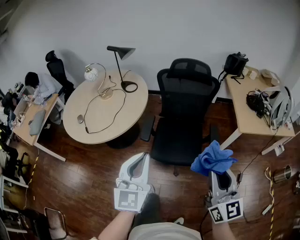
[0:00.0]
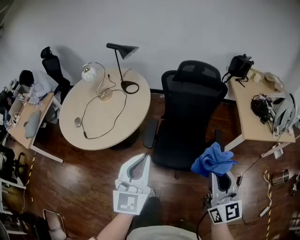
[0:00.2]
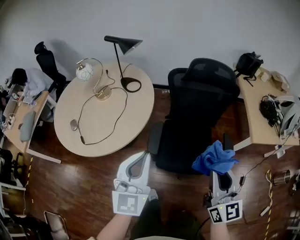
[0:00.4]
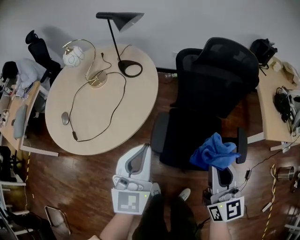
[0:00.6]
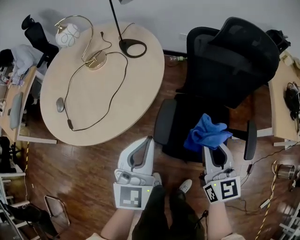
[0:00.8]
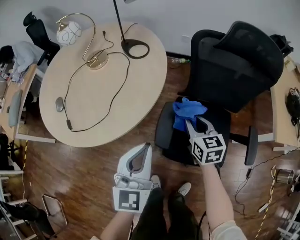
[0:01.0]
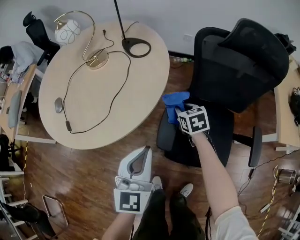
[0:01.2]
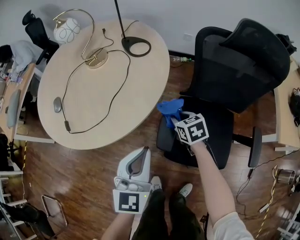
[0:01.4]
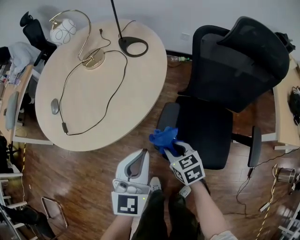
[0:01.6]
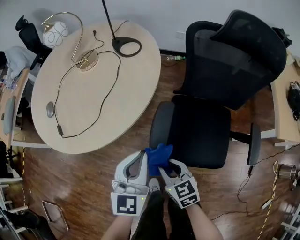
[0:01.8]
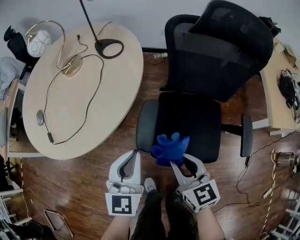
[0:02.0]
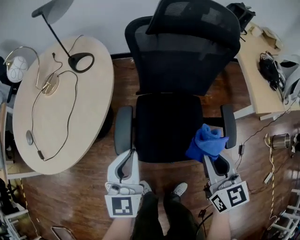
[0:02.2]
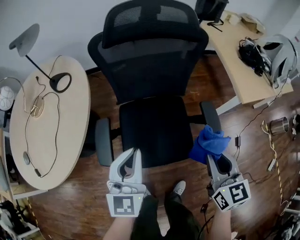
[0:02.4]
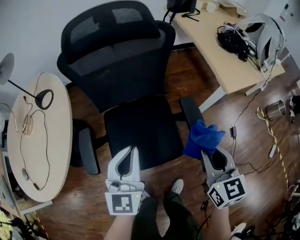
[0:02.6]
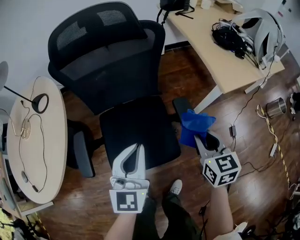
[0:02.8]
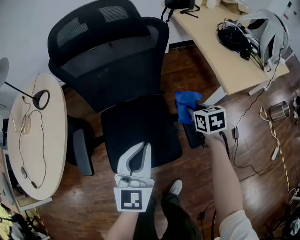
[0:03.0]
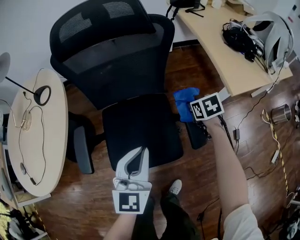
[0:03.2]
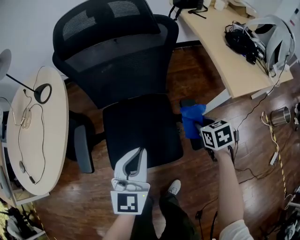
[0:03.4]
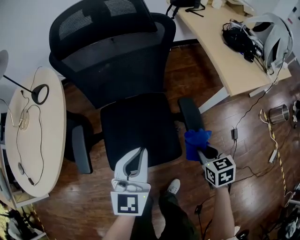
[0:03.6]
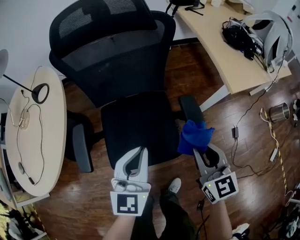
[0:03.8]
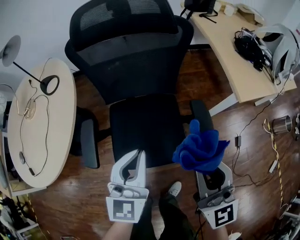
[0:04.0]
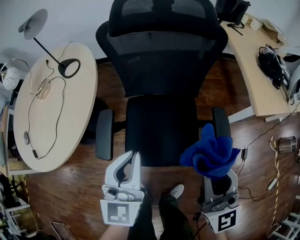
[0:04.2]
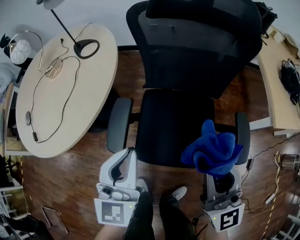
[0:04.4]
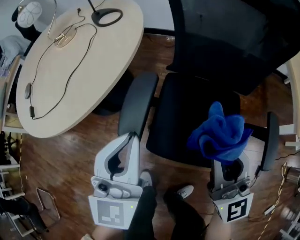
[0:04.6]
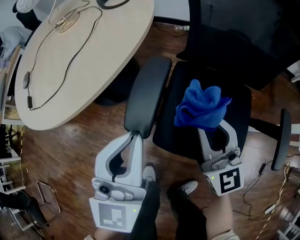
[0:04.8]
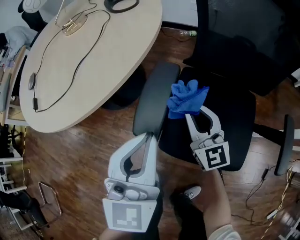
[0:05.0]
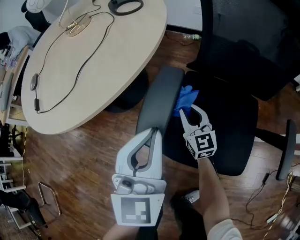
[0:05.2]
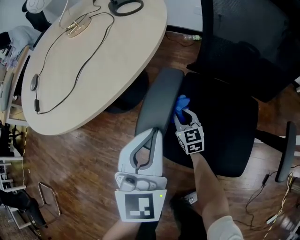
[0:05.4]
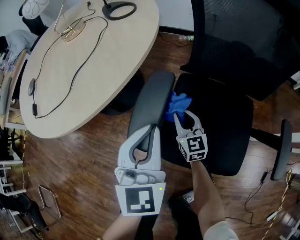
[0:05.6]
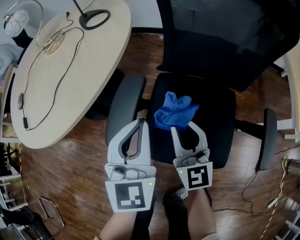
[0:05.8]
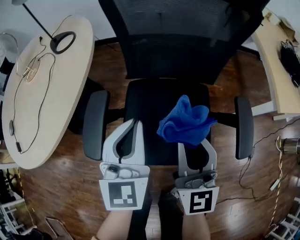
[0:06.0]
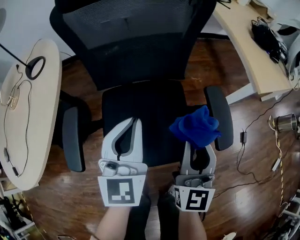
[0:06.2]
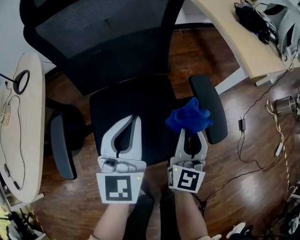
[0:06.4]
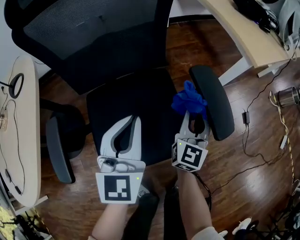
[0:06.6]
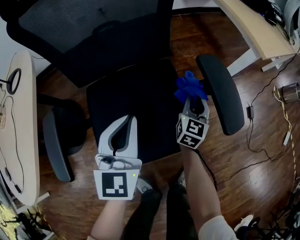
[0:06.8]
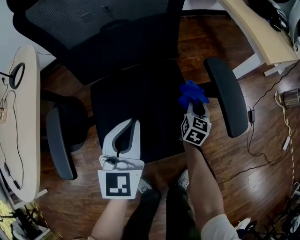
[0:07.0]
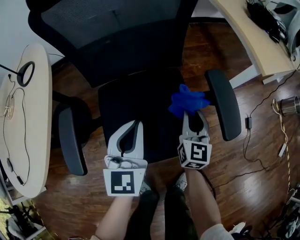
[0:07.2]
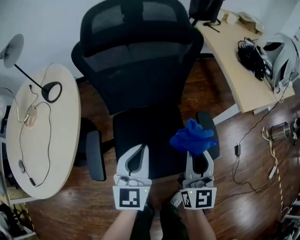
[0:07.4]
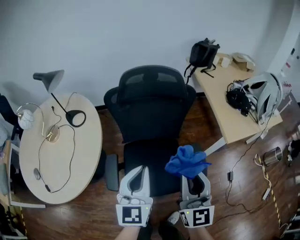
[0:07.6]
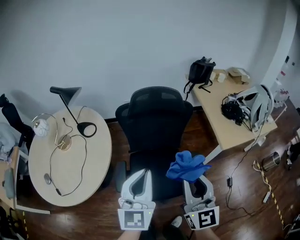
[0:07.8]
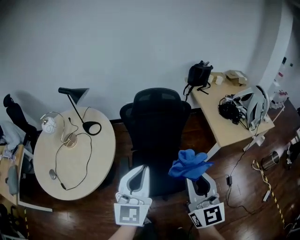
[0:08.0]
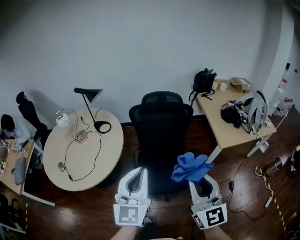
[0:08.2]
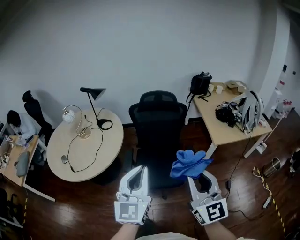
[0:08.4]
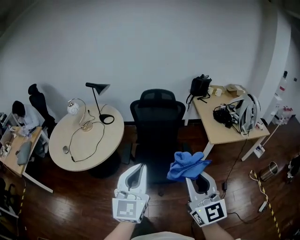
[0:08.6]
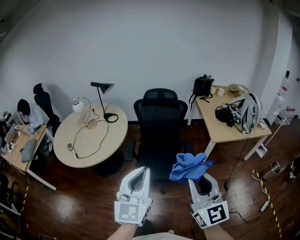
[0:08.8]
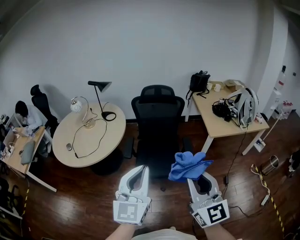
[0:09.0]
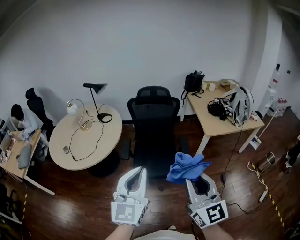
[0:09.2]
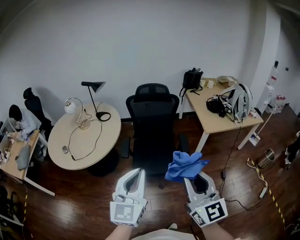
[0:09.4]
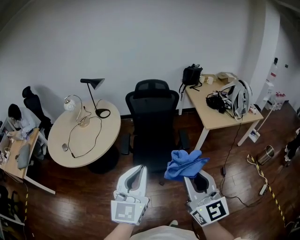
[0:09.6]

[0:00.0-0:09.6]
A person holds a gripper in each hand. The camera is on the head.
0:00.0 to 0:01.6: The right gripper travels downward, forward and to the left by approximately 80 cm, and tips its fingers downward by about 50 degrees; the left gripper moves downward and forward, approximately 60 cm.
0:01.6 to 0:03.2: The two grippers travel together, approximately 50 cm. The left gripper swivels roughly 20 degrees. Meanwhile the right gripper turns by some 40 degrees.
0:03.2 to 0:04.8: The left gripper ends up roughly 25 cm from where it was, and rotates some 30 degrees. The right gripper reaches roughly 30 cm upward, then returns, and points its fingers about 70 degrees further upward.
0:04.8 to 0:06.4: The left gripper shifts by some 25 cm, and swivels some 30 degrees. The right gripper goes up and down, approximately 40 cm each way, reversing 2 times, and swivels some 60 degrees.
0:06.4 to 0:08.0: Both grippers travel together upward, some 70 cm. The right gripper changes its angle by approximately 30 degrees.
0:08.0 to 0:09.6: The two grippers go about 40 cm backward and upward.

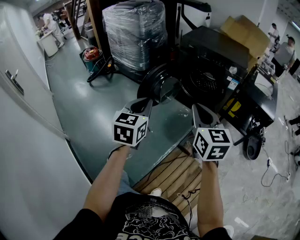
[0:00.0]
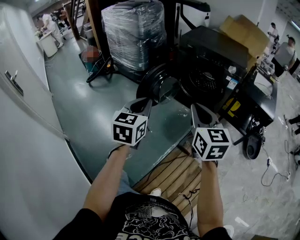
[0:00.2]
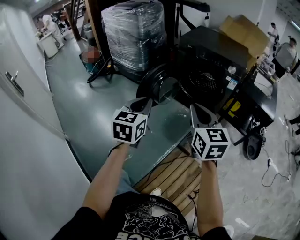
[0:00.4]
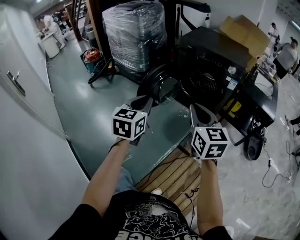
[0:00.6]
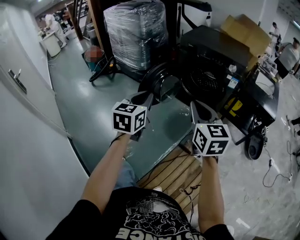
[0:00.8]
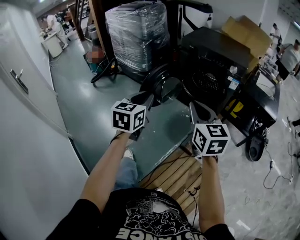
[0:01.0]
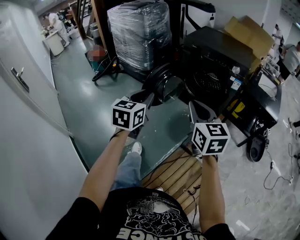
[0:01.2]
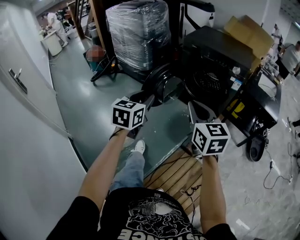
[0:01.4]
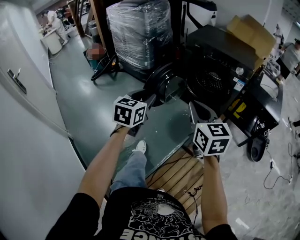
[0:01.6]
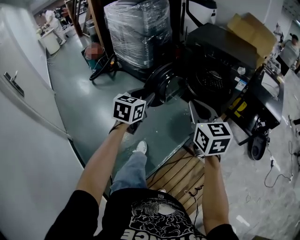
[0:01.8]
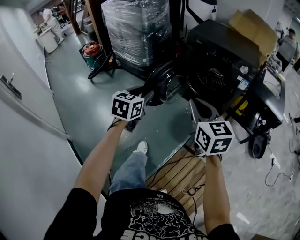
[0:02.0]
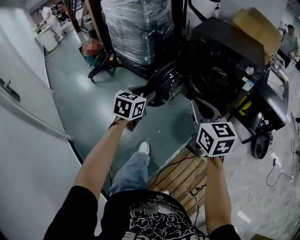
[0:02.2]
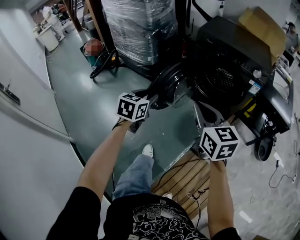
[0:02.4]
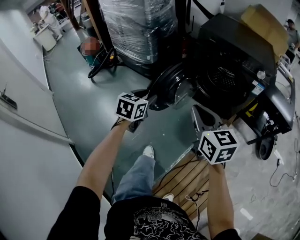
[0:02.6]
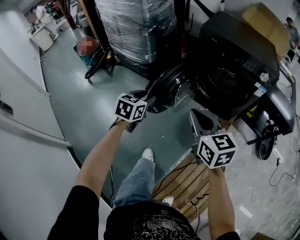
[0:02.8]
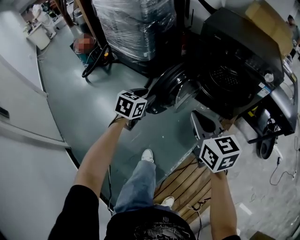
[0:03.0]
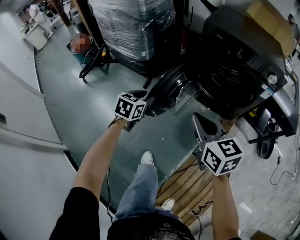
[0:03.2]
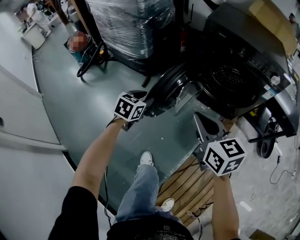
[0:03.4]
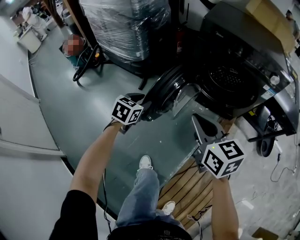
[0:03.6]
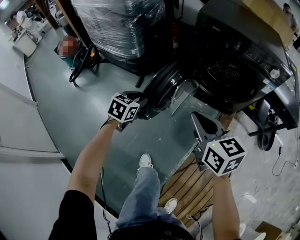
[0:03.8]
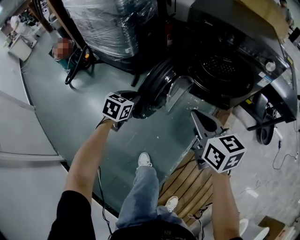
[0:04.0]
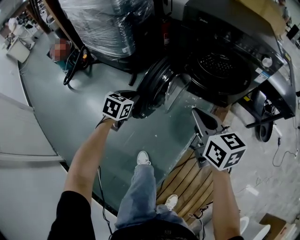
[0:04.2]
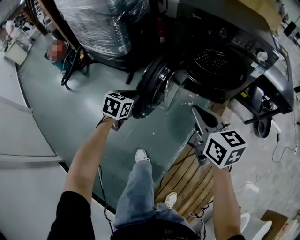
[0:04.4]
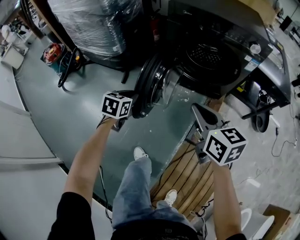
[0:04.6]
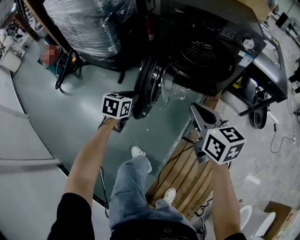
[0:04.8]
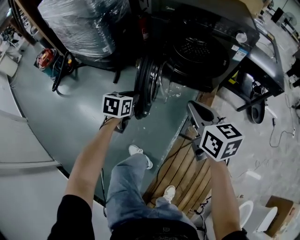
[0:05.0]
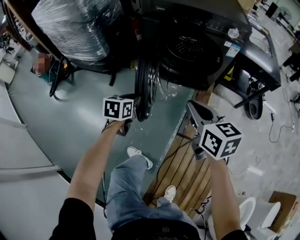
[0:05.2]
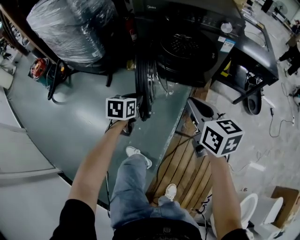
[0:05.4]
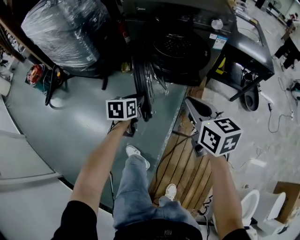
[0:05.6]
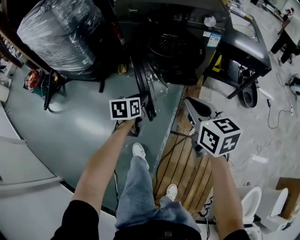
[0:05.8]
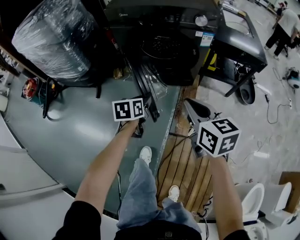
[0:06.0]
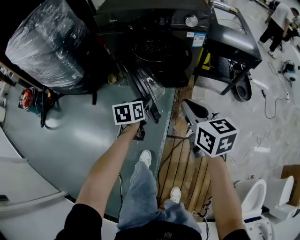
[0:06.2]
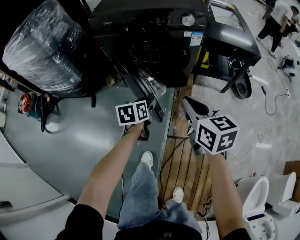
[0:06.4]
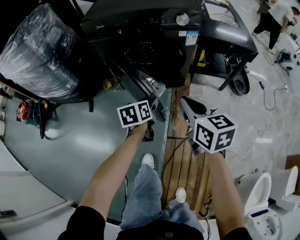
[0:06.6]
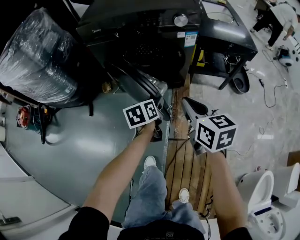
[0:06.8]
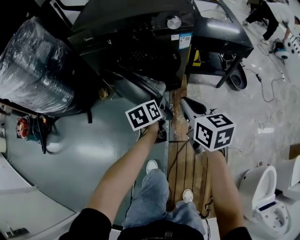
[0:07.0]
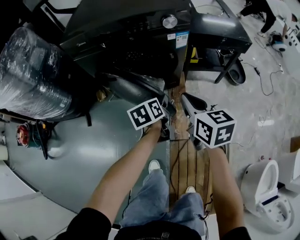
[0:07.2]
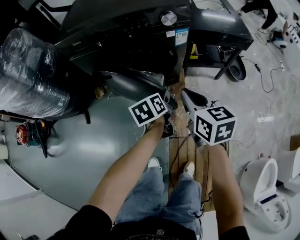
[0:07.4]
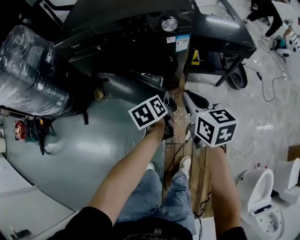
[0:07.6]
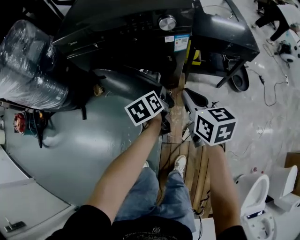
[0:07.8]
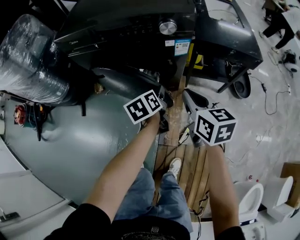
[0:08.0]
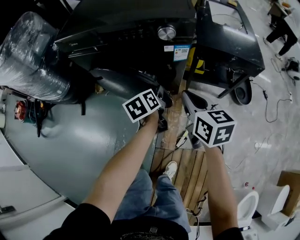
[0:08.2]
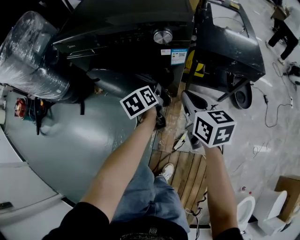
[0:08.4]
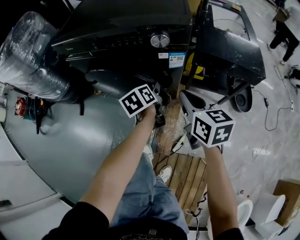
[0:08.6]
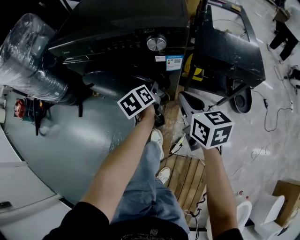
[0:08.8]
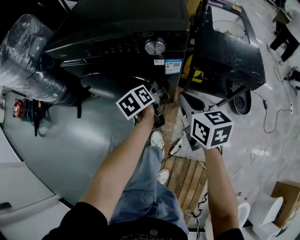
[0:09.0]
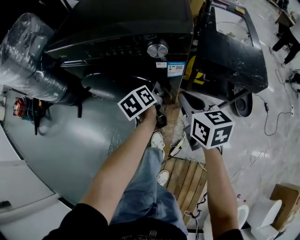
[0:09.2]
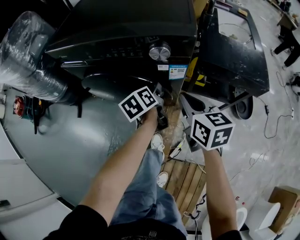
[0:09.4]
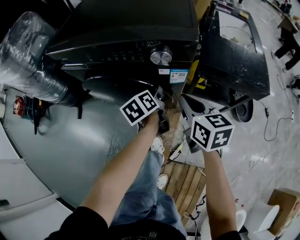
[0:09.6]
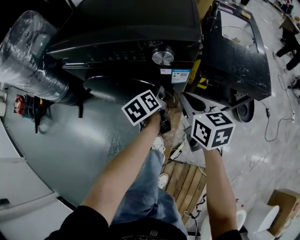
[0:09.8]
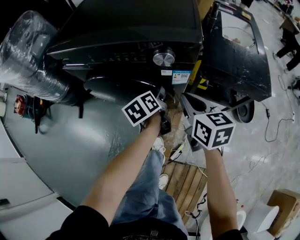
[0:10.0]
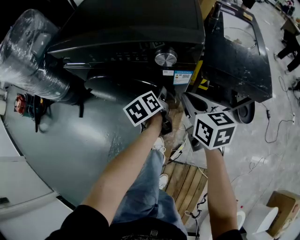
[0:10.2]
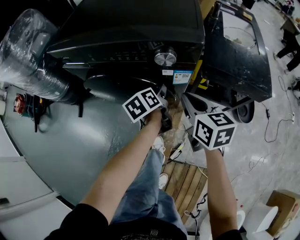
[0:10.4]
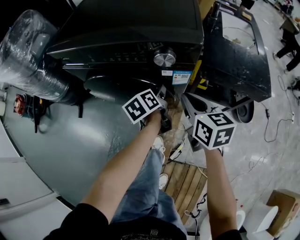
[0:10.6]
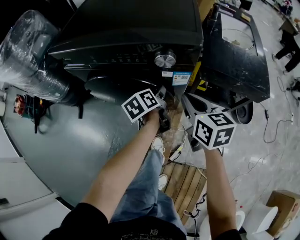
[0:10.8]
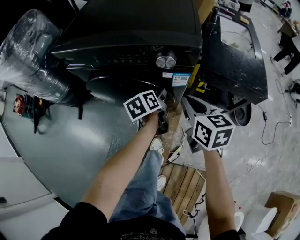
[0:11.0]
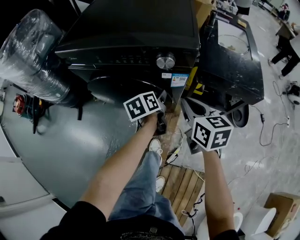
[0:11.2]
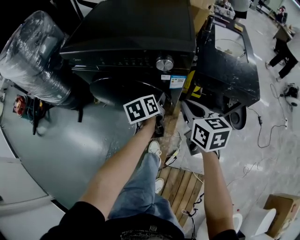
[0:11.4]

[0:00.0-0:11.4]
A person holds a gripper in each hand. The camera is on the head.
0:00.0 to 0:01.4: The left gripper opens.
0:01.4 to 0:02.8: The left gripper travels forward and downward by some 30 cm. Meanwhile the right gripper travels forward, downward and to the left by roughly 20 cm.
0:02.8 to 0:04.2: Both grippers travel together downward and forward, approximately 15 cm. The left gripper closes its fingers.
0:04.2 to 0:05.6: Both grippers travel together to the right, roughly 20 cm.
0:05.6 to 0:07.2: The right gripper travels forward and to the right by some 15 cm. The left gripper goes some 25 cm to the right and forward, and opens.
0:07.2 to 0:08.6: Both grippers travel together forward and to the right, roughly 15 cm. The left gripper rotates approximately 20 degrees.
0:08.6 to 0:10.0: The grippers both shift forward by roughly 5 cm.
0:10.0 to 0:11.4: The right gripper changes place by approximately 5 cm. The left gripper shifts by roughly 5 cm.

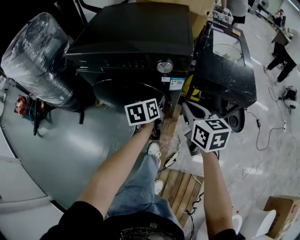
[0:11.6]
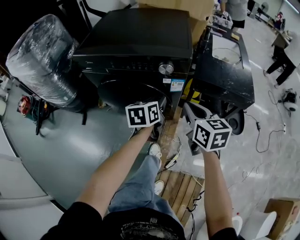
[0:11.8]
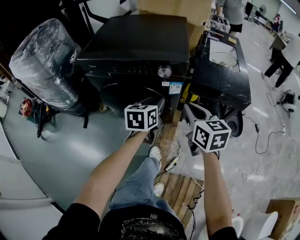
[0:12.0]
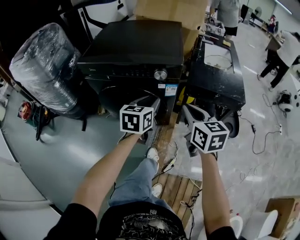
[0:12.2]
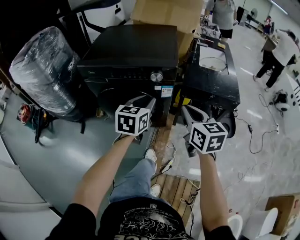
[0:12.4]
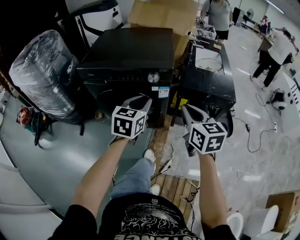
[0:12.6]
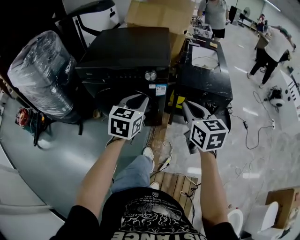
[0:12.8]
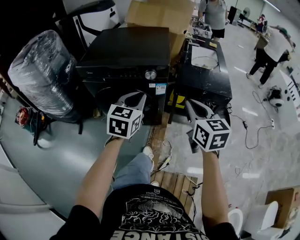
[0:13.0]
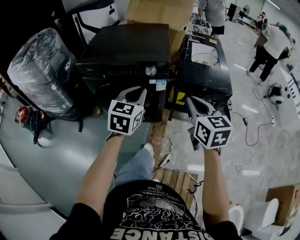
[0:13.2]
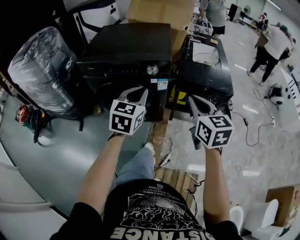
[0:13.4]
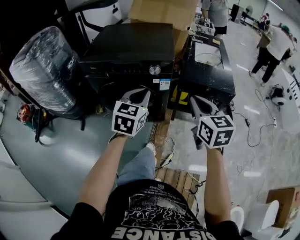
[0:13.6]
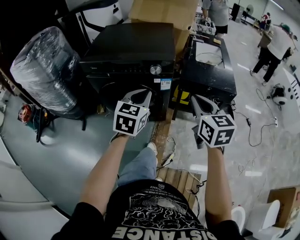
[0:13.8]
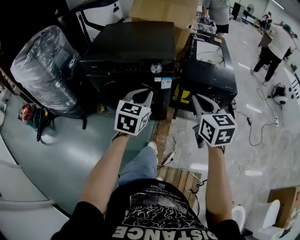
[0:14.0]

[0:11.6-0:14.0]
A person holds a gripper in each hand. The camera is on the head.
0:11.6 to 0:12.8: Both grippers move upward and backward, roughly 20 cm. The left gripper rotates about 40 degrees, and closes its fingers.
0:12.8 to 0:14.0: There are only small adjustments of the grippers.
